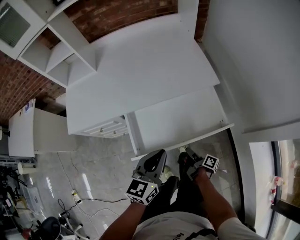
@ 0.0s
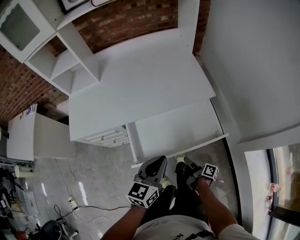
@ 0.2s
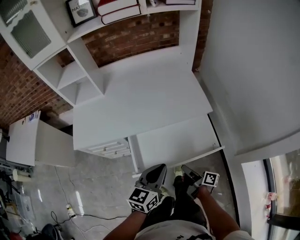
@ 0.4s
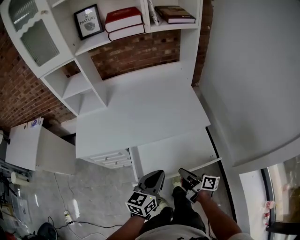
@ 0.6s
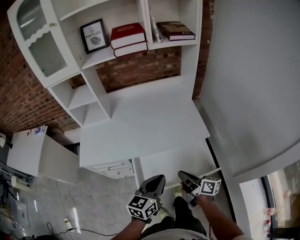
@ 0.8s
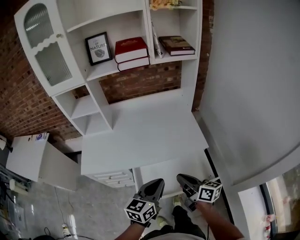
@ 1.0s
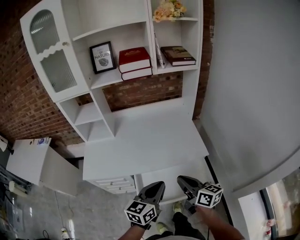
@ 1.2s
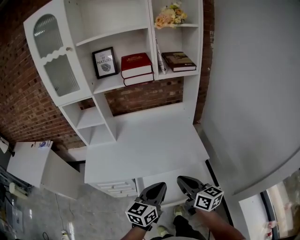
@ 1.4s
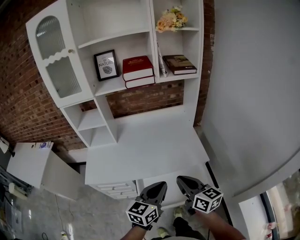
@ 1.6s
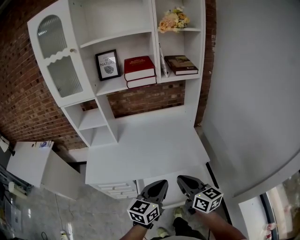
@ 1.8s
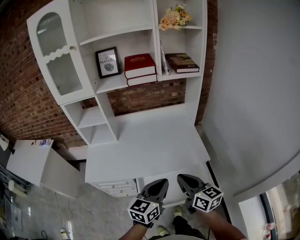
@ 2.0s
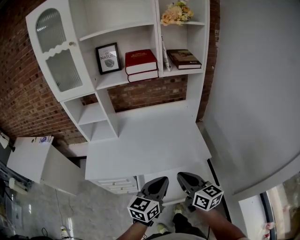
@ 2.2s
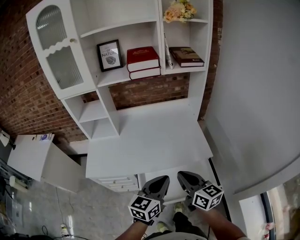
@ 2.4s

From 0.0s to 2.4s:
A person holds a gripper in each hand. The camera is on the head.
From 0.0s to 1.2s: The right gripper heads upward, covering roughly 40 cm, and rotates around the line of its fingers by roughly 60 degrees, counterclockwise from behind, while the left gripper is displaced upward by some 15 cm.
From 1.2s to 2.4s: The right gripper shifts by about 5 cm.

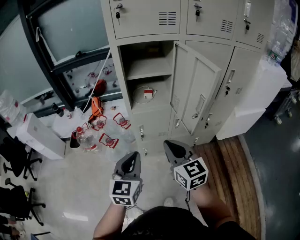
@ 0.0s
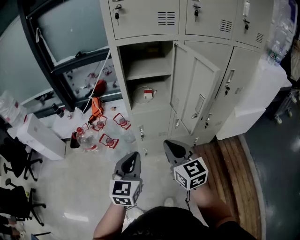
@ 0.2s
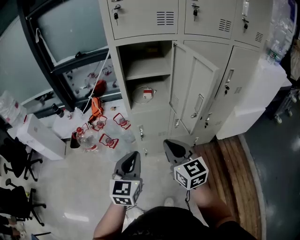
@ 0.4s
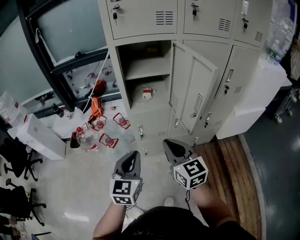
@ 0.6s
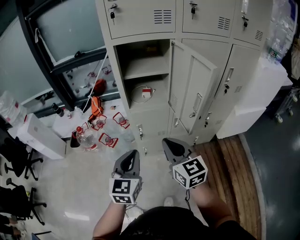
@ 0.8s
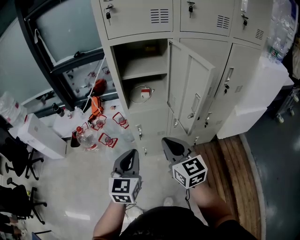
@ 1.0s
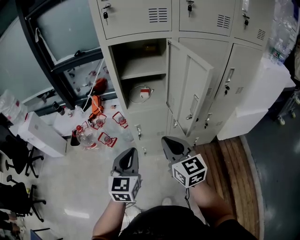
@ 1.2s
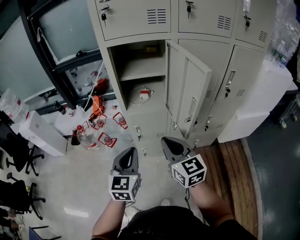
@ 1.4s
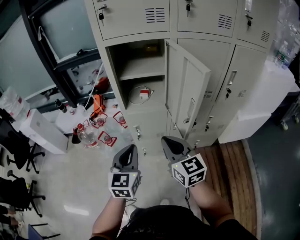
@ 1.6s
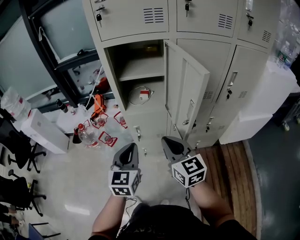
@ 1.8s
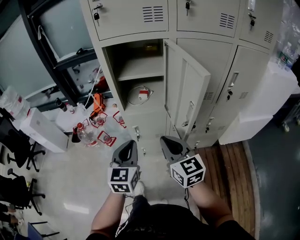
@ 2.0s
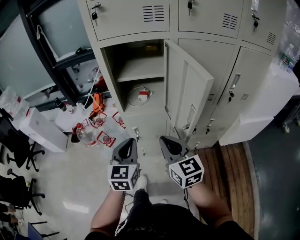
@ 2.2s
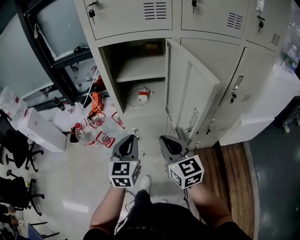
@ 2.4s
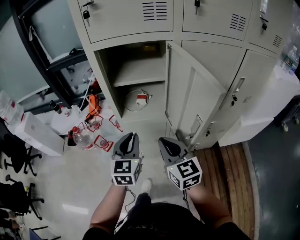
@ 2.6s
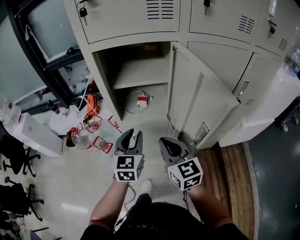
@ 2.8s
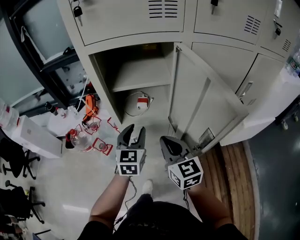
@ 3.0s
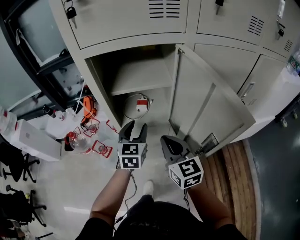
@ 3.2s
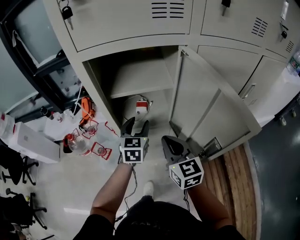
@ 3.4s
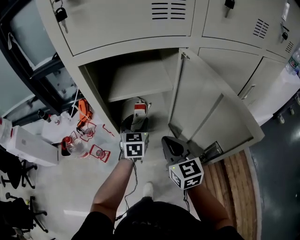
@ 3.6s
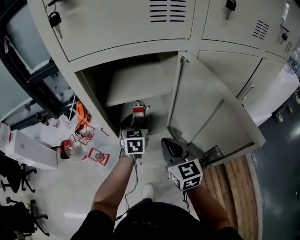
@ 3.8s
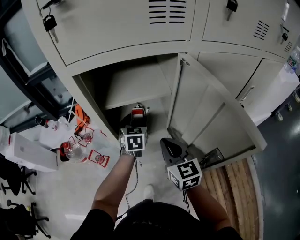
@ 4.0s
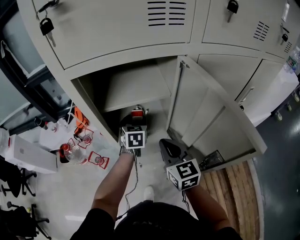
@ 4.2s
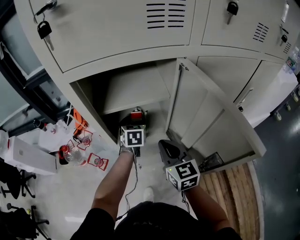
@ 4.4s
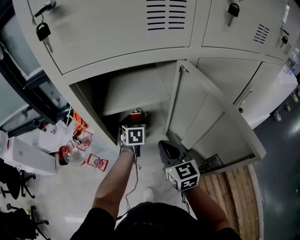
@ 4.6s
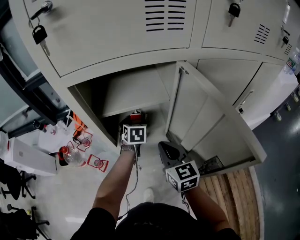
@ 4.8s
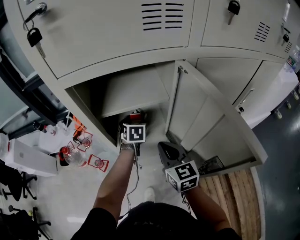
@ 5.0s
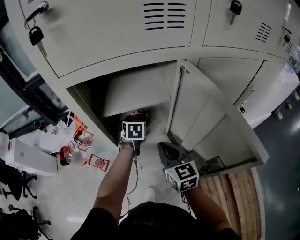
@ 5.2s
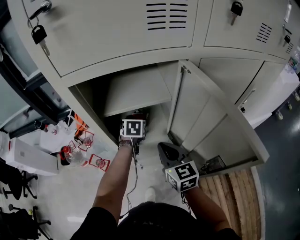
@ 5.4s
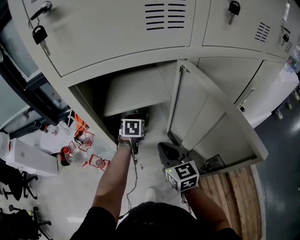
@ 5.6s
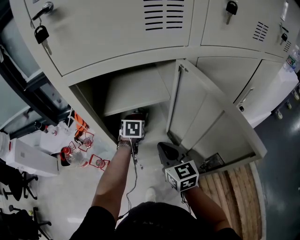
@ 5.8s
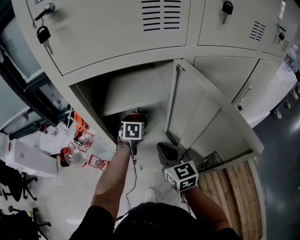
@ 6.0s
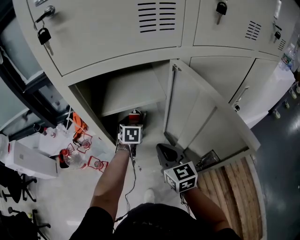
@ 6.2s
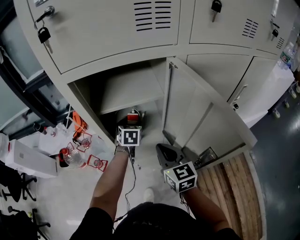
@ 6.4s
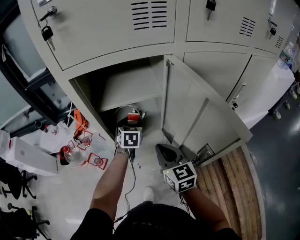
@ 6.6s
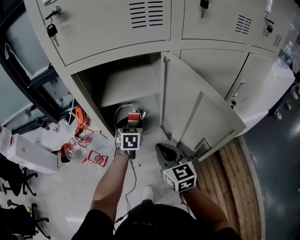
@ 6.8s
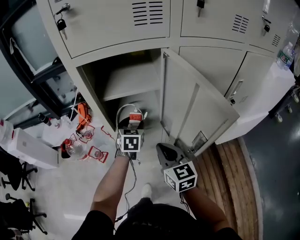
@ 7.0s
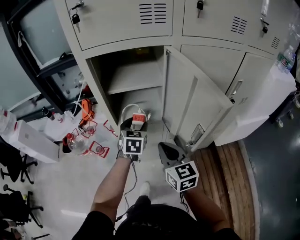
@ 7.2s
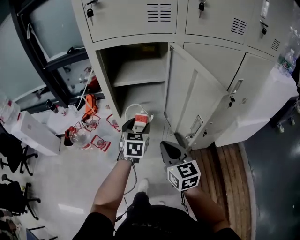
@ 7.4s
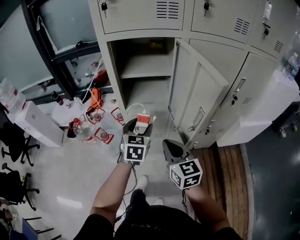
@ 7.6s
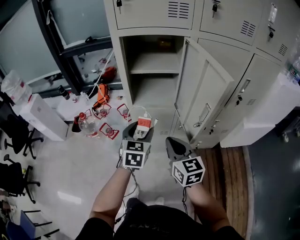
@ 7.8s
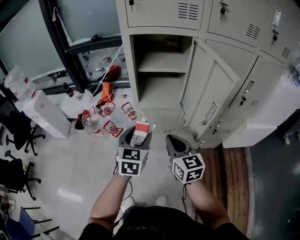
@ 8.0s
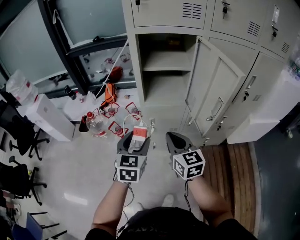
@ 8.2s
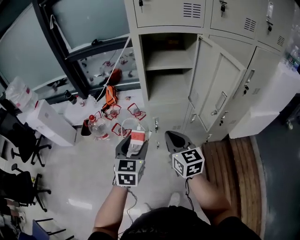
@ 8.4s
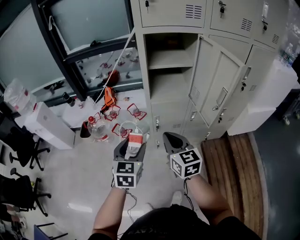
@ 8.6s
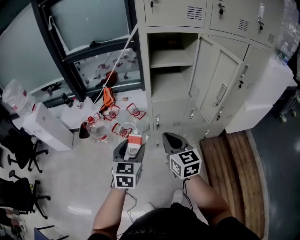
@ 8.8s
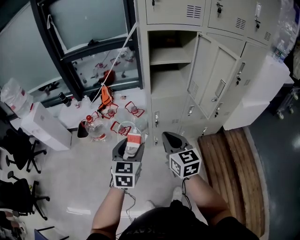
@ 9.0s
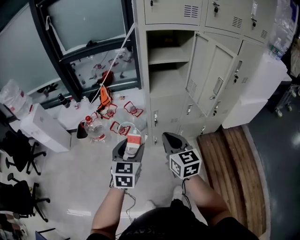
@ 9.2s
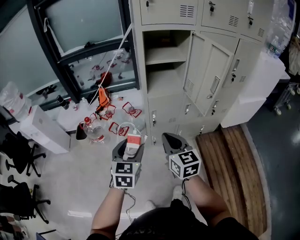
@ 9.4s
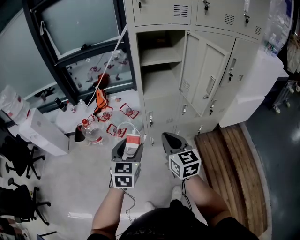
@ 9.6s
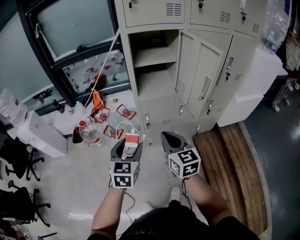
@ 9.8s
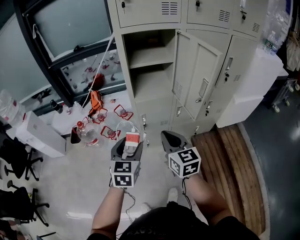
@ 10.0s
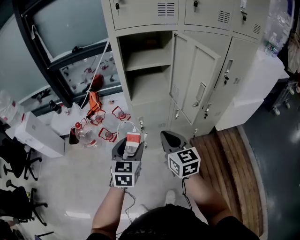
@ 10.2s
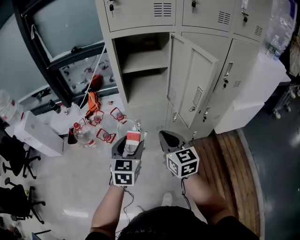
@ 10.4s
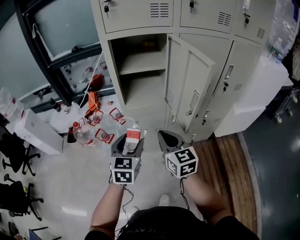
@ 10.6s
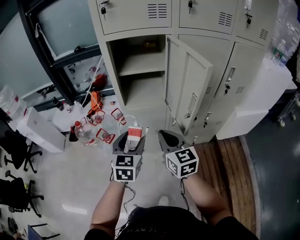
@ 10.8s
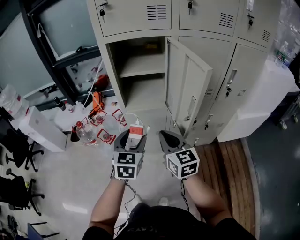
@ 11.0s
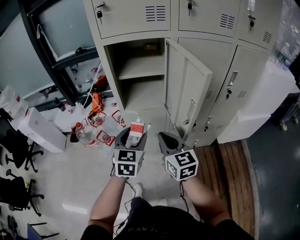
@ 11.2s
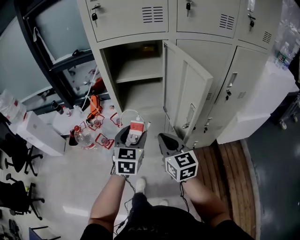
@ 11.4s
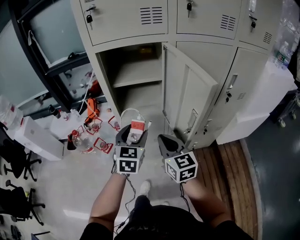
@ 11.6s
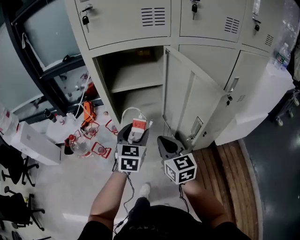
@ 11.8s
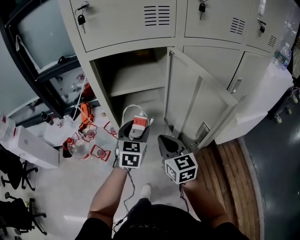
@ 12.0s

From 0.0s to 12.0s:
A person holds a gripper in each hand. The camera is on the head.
From 0.0s to 1.6s: The grippers both shift to the right by about 5 cm.
From 1.6s to 3.0s: The left gripper shifts roughly 20 cm forward, and opens its fingers. Meanwhile the right gripper is displaced forward by about 15 cm.
From 3.0s to 4.4s: The left gripper moves forward and downward, approximately 20 cm, and opens its fingers, while the right gripper shifts roughly 10 cm forward.
From 4.4s to 6.0s: The grippers move only a little.
From 6.0s to 7.6s: The grippers both shift backward by some 20 cm. The left gripper changes its angle by roughly 20 degrees.
From 7.6s to 9.0s: Both grippers travel together to the left and backward, approximately 25 cm.
From 9.0s to 10.4s: The grippers both shift to the right and forward by approximately 15 cm.
From 10.4s to 12.0s: The right gripper moves forward, some 15 cm. Meanwhile the left gripper travels forward and to the right by some 25 cm.

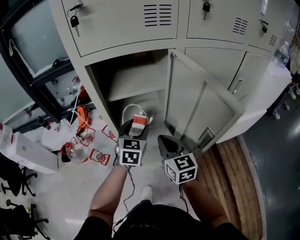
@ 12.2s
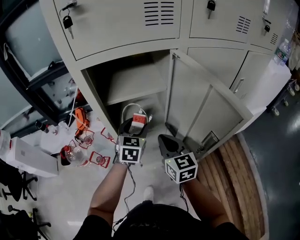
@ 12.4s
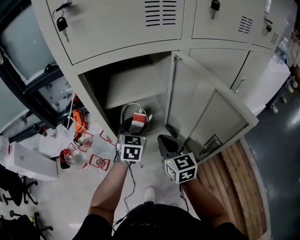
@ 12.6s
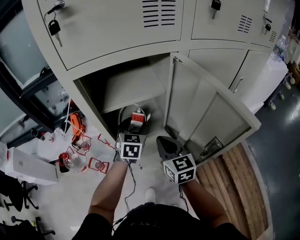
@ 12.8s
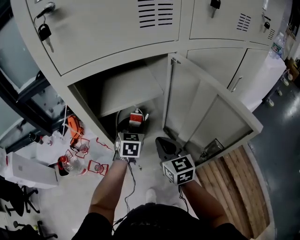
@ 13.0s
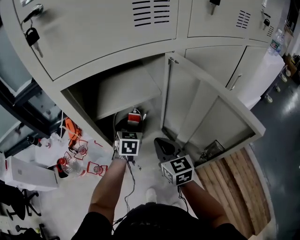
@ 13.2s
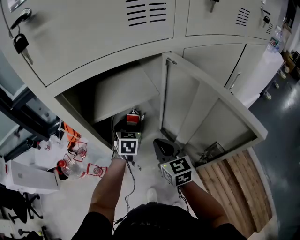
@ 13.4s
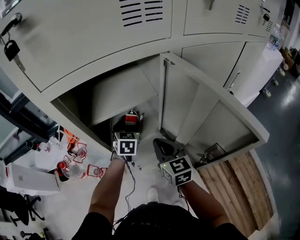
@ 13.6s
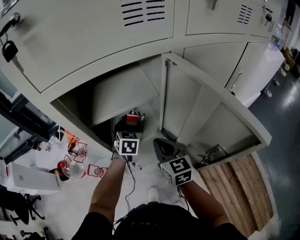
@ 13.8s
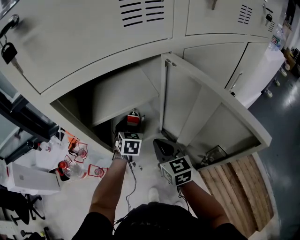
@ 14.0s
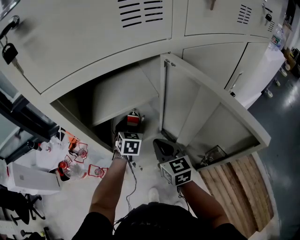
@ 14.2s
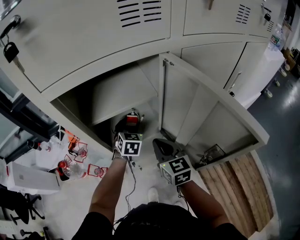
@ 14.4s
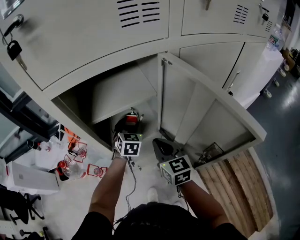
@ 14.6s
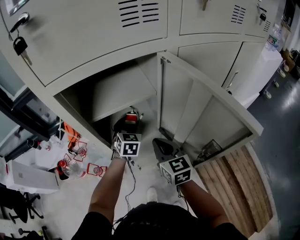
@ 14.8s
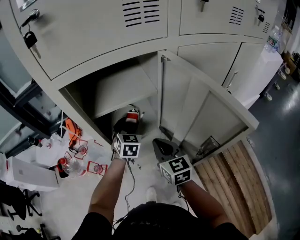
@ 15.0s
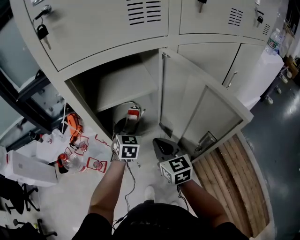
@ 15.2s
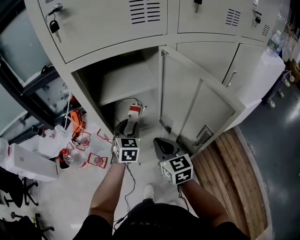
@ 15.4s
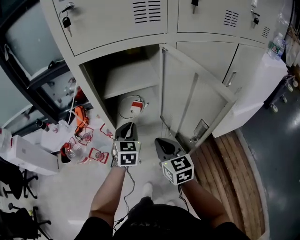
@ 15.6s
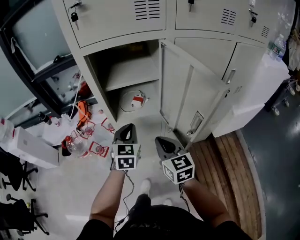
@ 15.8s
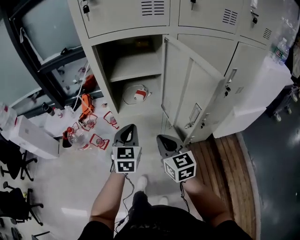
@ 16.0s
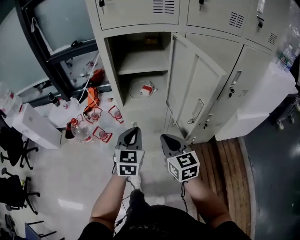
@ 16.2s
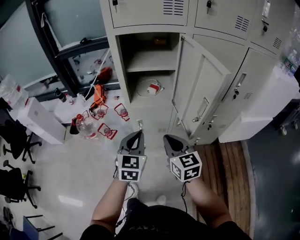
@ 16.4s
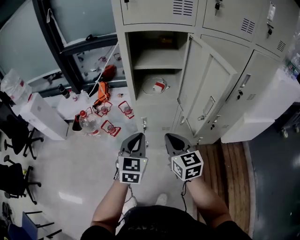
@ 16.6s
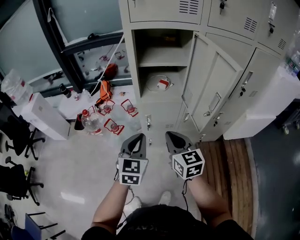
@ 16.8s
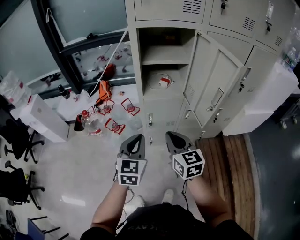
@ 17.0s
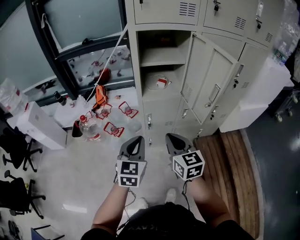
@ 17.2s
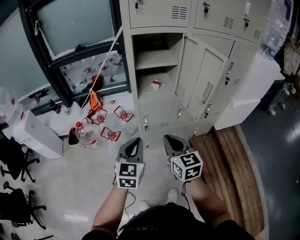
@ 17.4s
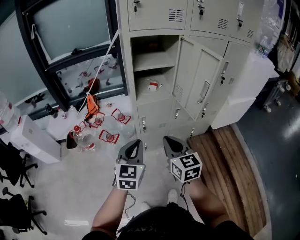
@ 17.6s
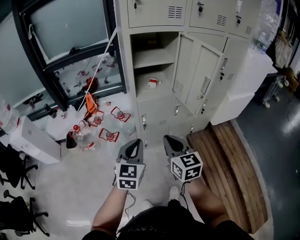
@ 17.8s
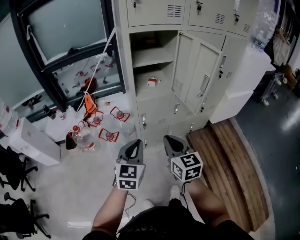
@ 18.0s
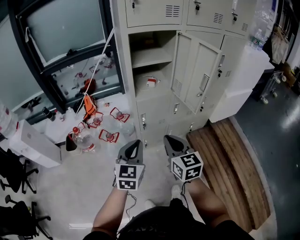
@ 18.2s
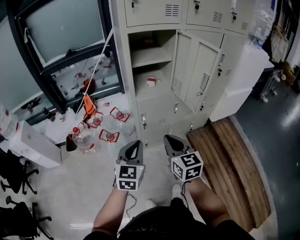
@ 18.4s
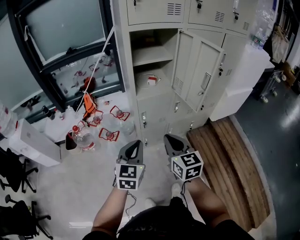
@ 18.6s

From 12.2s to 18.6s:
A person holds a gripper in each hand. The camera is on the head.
From 12.2s to 13.8s: The left gripper is displaced forward and downward by about 15 cm; the right gripper shifts approximately 10 cm forward.
From 13.8s to 15.4s: The right gripper moves backward, roughly 10 cm, while the left gripper moves backward and upward, some 10 cm.
From 15.4s to 17.0s: The left gripper moves backward and to the left, about 35 cm, and closes its fingers, while the right gripper goes about 20 cm backward and to the left.
From 17.0s to 18.6s: Both grippers move backward and to the left, about 10 cm.

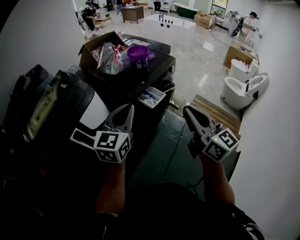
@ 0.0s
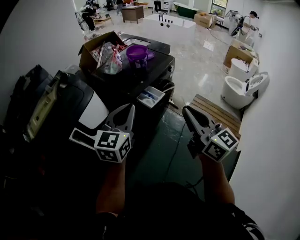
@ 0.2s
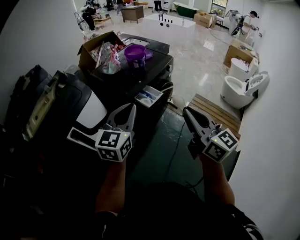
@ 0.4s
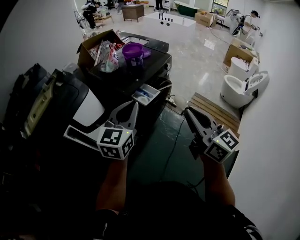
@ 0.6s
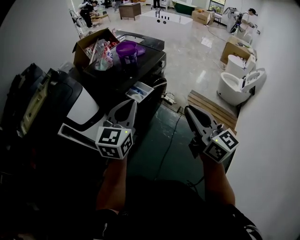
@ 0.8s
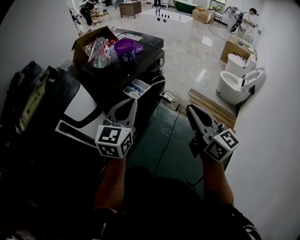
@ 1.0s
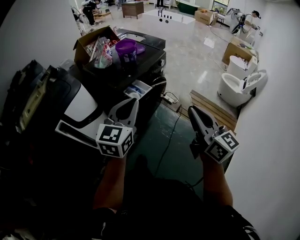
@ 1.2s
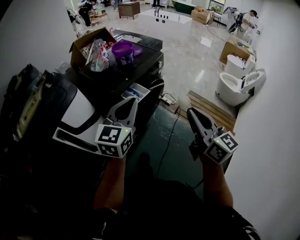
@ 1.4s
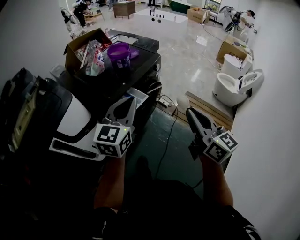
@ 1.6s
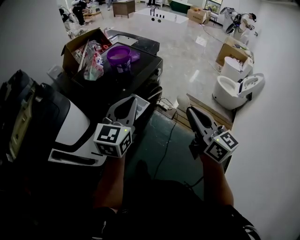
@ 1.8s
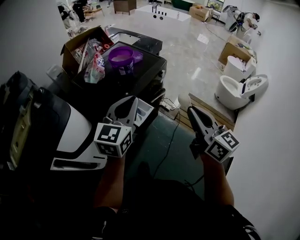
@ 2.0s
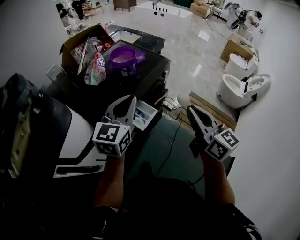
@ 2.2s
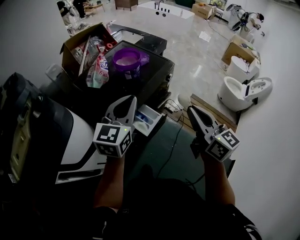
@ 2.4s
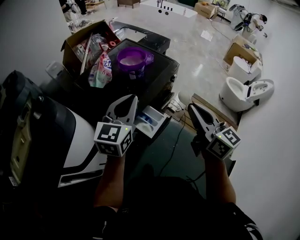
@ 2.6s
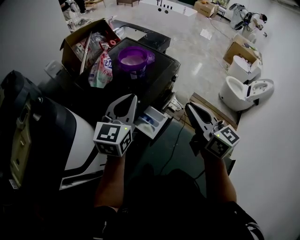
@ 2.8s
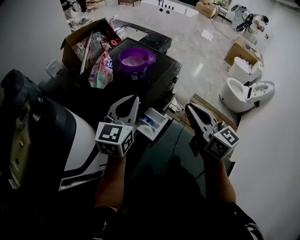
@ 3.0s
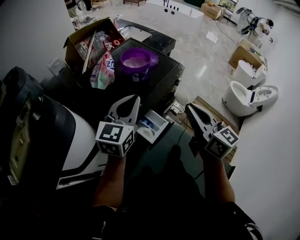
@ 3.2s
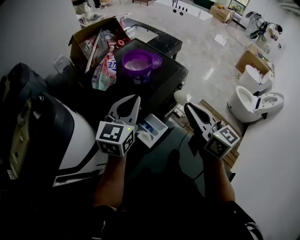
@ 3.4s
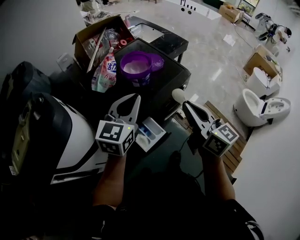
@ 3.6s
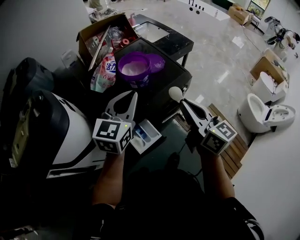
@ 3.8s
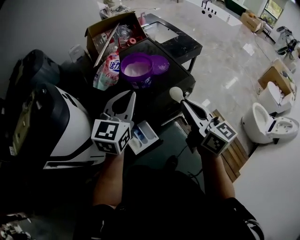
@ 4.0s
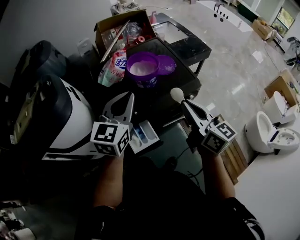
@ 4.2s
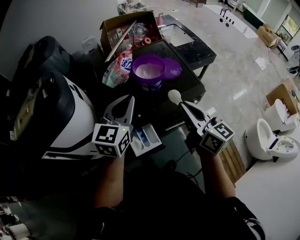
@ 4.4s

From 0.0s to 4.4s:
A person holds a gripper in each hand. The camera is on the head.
From 0.0s to 1.4s: Both grippers move to the right, approximately 15 cm.
From 1.4s to 3.0s: Both grippers move forward, approximately 30 cm.
From 3.0s to 4.4s: The right gripper shifts by approximately 20 cm, and rotates some 30 degrees. Meanwhile the left gripper ends up approximately 10 cm from where it was, and changes its angle by approximately 30 degrees.
